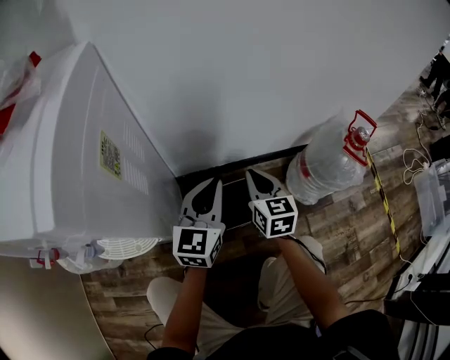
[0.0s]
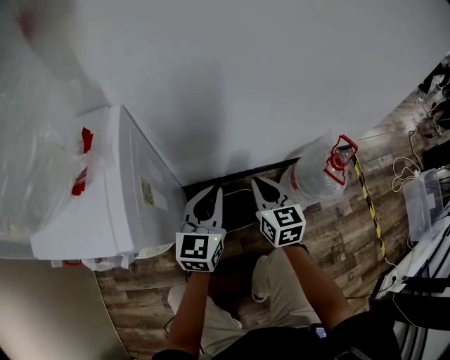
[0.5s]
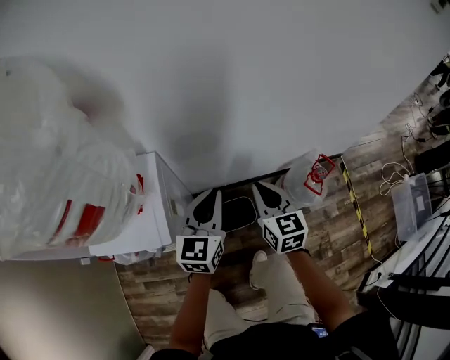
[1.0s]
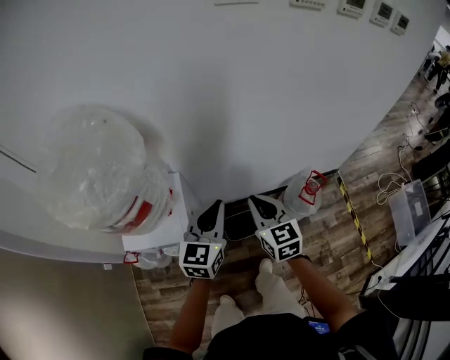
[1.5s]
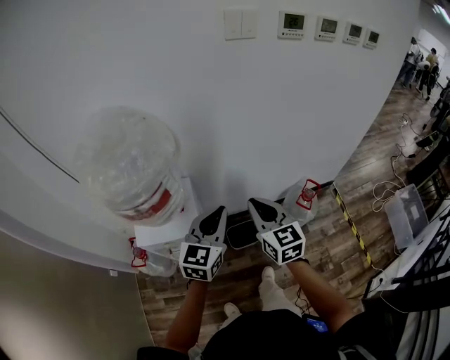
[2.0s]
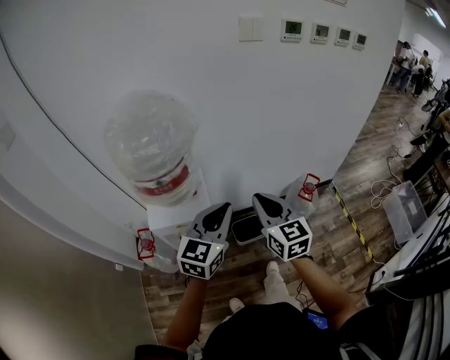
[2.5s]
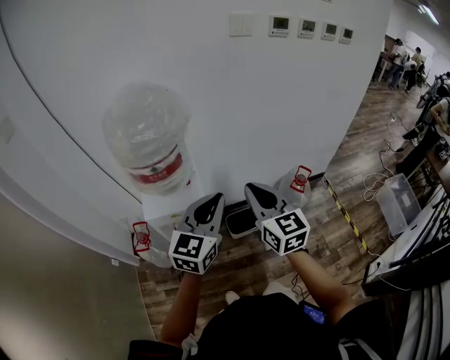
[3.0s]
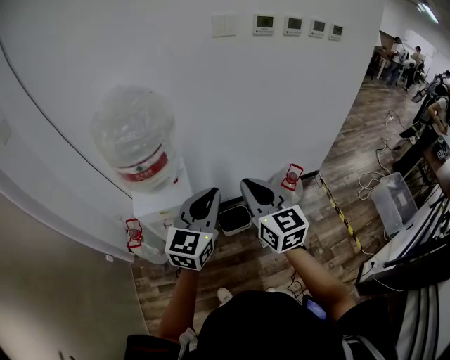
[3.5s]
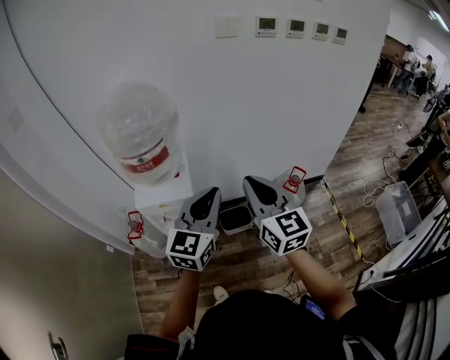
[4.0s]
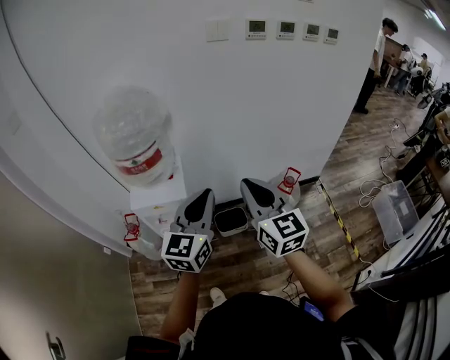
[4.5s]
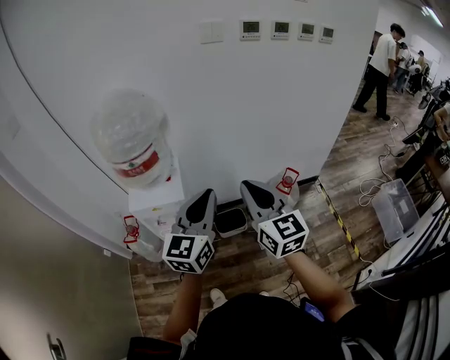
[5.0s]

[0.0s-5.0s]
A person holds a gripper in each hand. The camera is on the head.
0.0s to 2.5s: The two grippers go about 60 cm upward.
2.5s to 5.0s: Both grippers move to the right, backward and upward, about 15 cm.

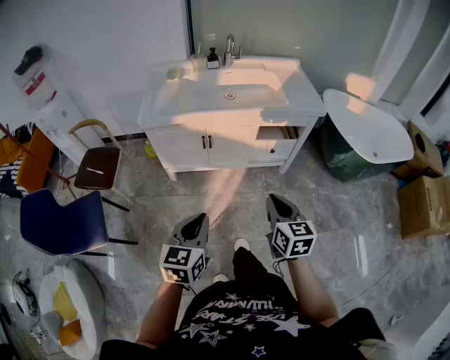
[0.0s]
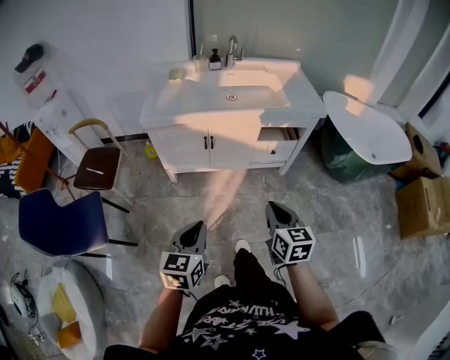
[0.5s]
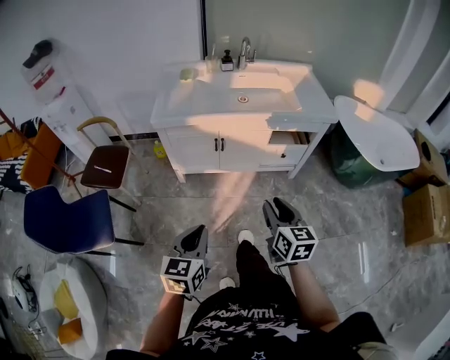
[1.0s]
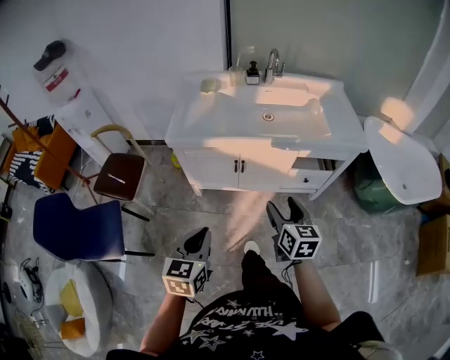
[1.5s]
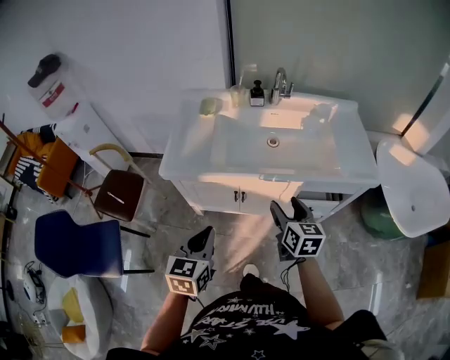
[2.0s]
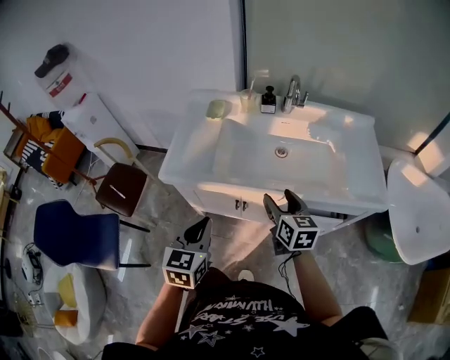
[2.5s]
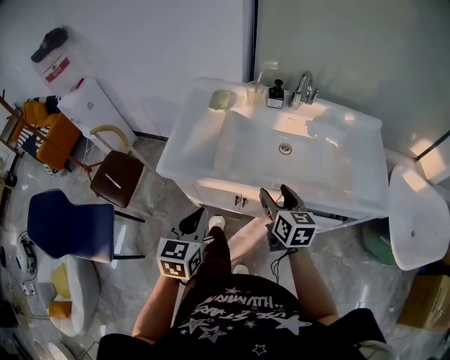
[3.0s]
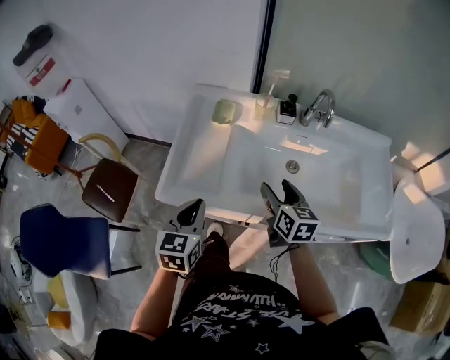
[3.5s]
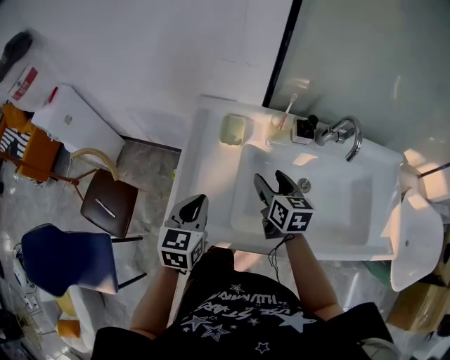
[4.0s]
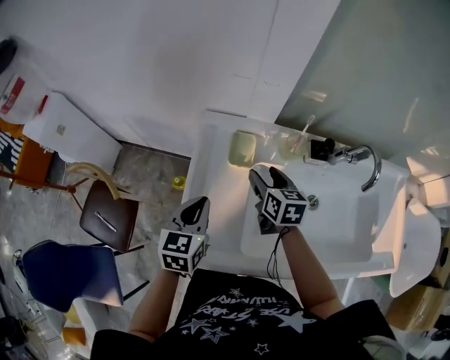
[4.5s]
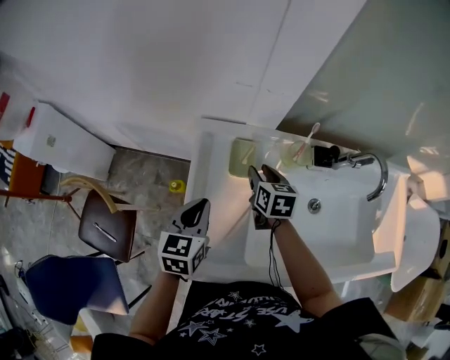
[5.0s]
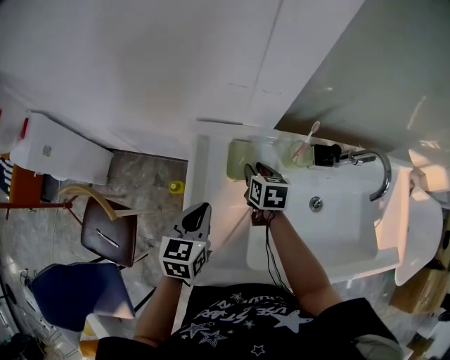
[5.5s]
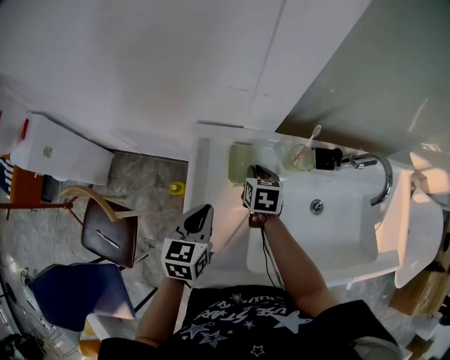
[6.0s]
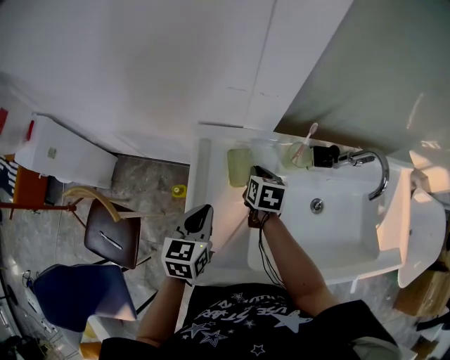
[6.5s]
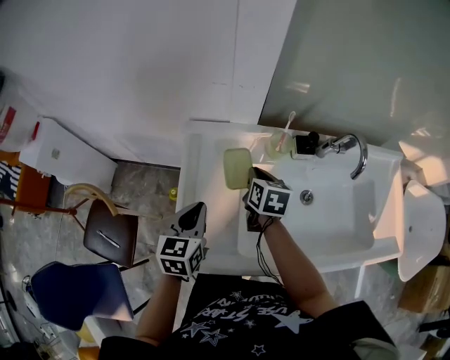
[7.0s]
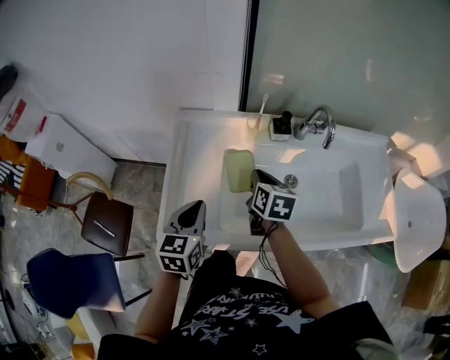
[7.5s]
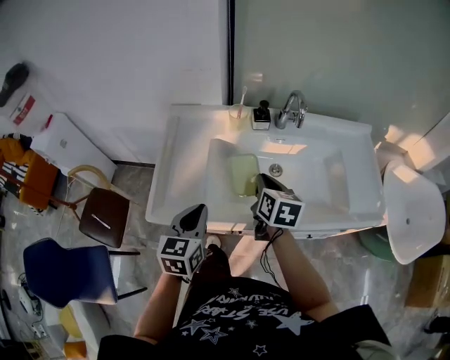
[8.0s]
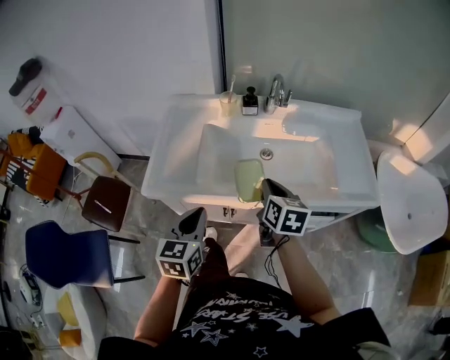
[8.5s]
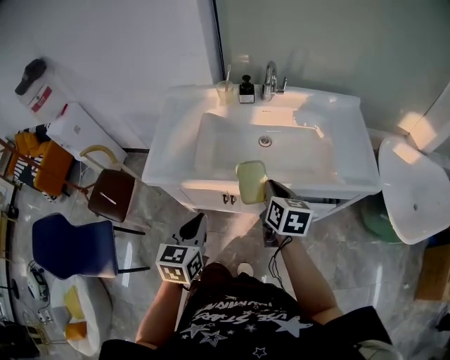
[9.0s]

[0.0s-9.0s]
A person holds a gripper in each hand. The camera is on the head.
0.0s to 2.0s: Both grippers travel together forward, approximately 30 cm. The right gripper opens its fingers.
2.0s to 4.5s: The pair of grippers is taken forward, approximately 50 cm.
4.5s to 7.0s: The right gripper goes downward and returns, approximately 10 cm each way, and closes its fingers.
7.0s to 9.0s: Both grippers are carried backward and to the right, about 40 cm.

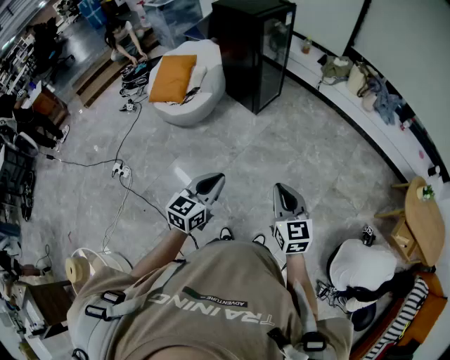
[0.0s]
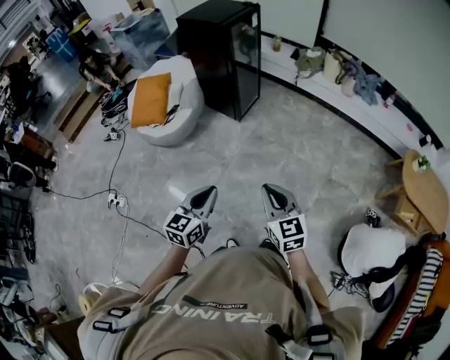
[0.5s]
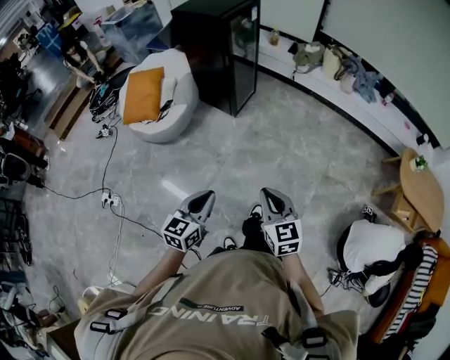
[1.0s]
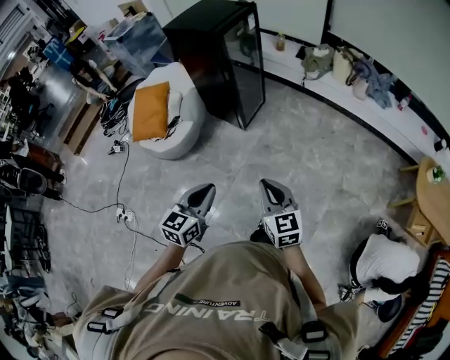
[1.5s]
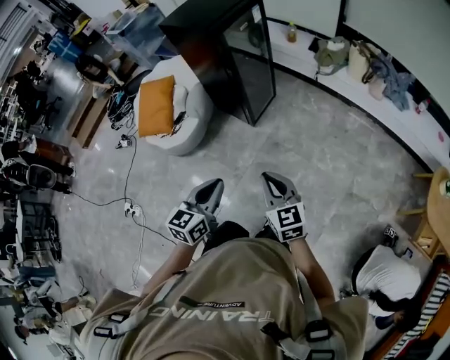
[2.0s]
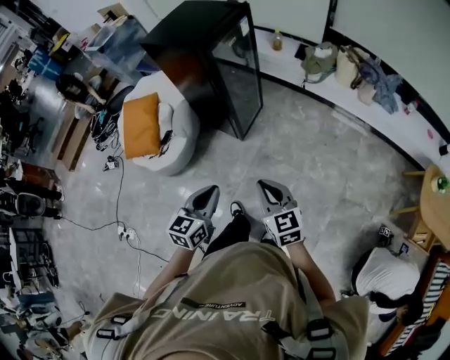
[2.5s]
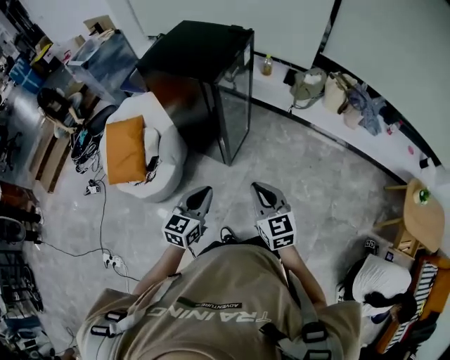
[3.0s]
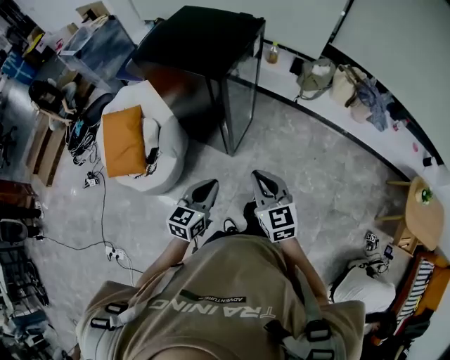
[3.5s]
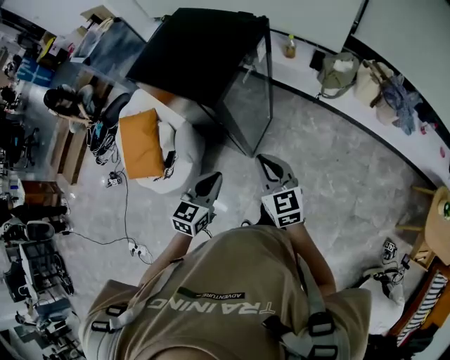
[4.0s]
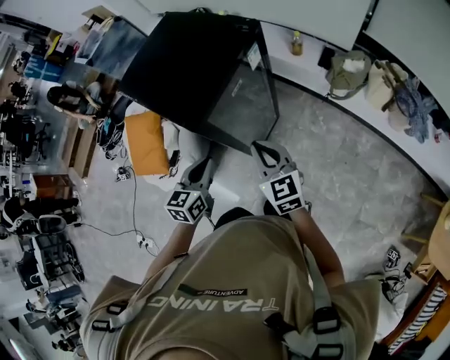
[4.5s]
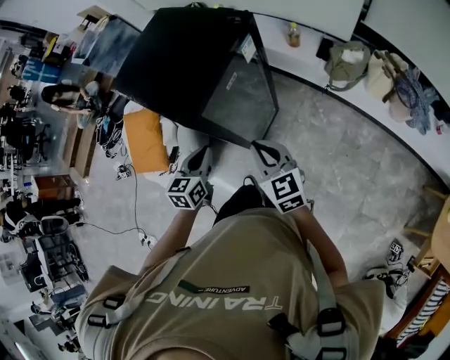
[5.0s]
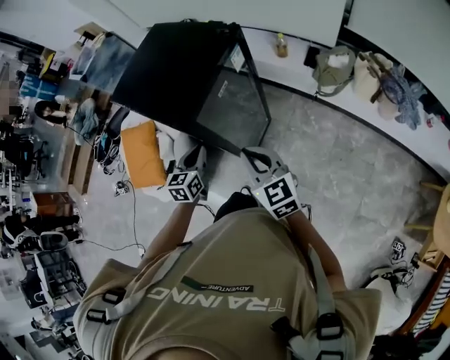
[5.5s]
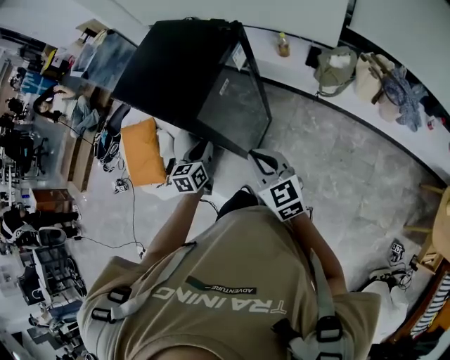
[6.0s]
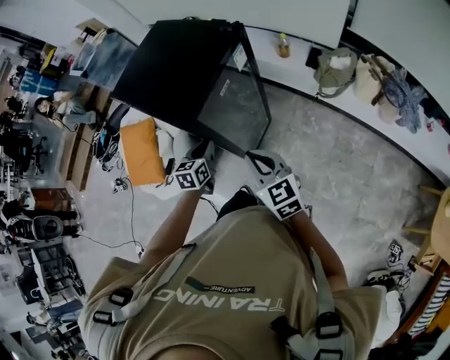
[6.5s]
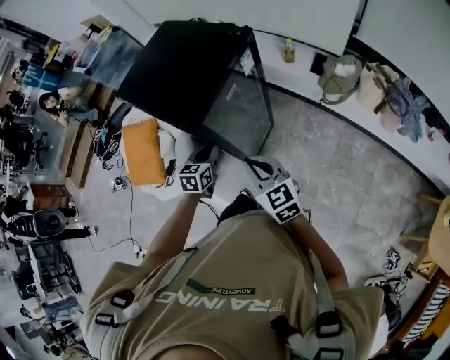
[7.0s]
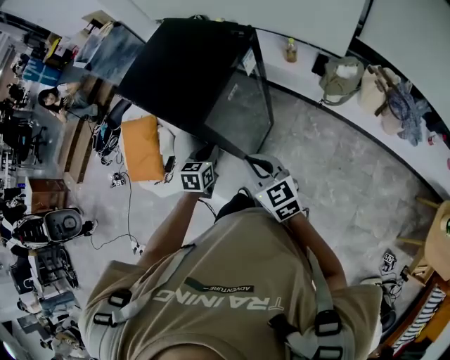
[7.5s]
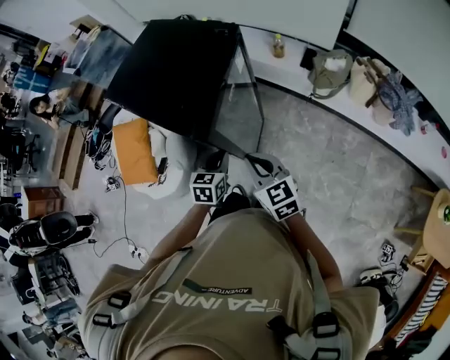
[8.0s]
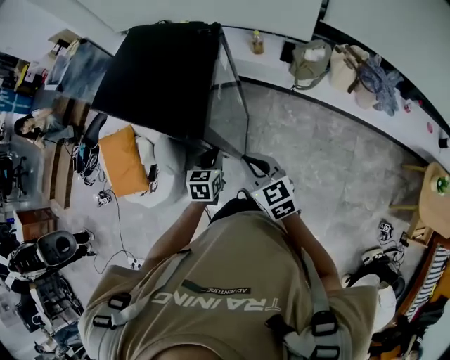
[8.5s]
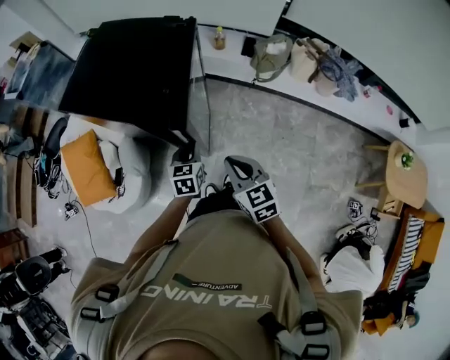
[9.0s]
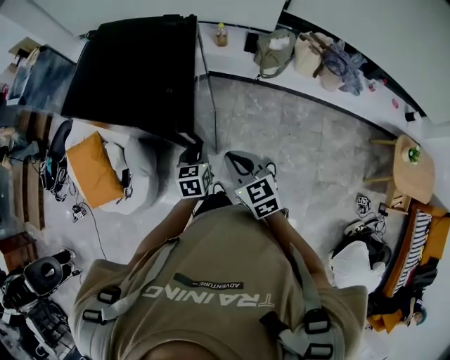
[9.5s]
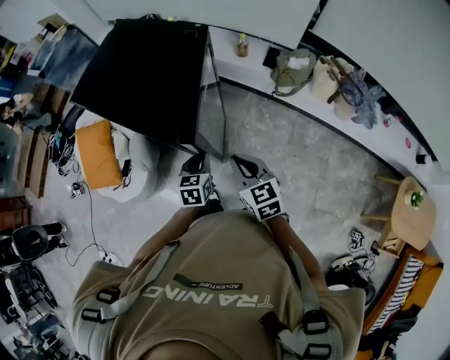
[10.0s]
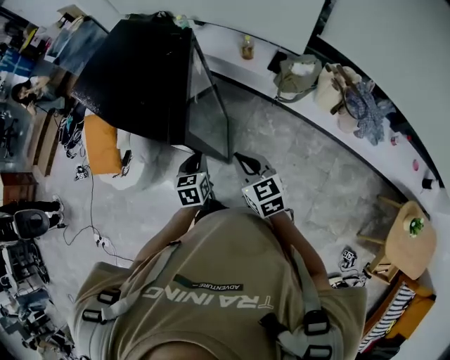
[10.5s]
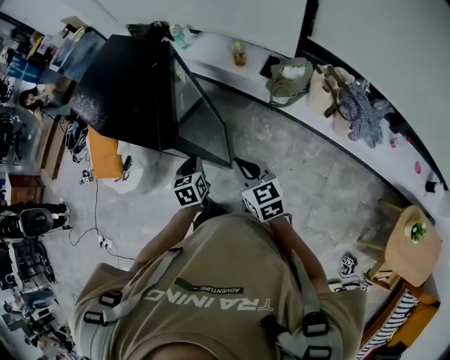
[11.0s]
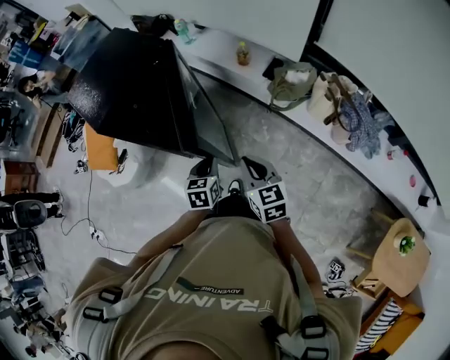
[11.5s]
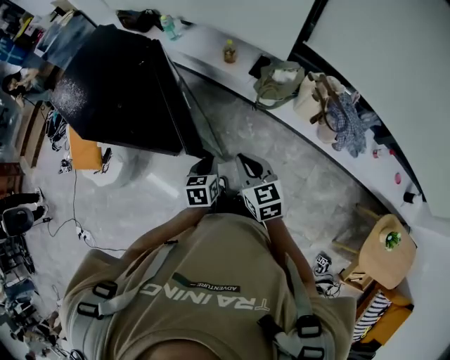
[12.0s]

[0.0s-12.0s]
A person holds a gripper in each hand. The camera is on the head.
0.0s to 2.0s: The two grippers go some 30 cm forward.
2.0s to 4.0s: The two grippers go about 40 cm forward.
4.0s to 6.0s: The left gripper is displaced forward and downward by approximately 20 cm, and changes its angle by approximately 20 degrees.
6.0s to 8.0s: The left gripper shifts about 10 cm to the right.
8.0s to 10.0s: The right gripper shifts about 5 cm to the right.
10.0s to 12.0s: The two grippers go approximately 20 cm to the right.

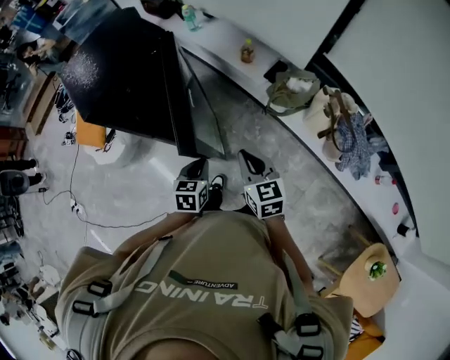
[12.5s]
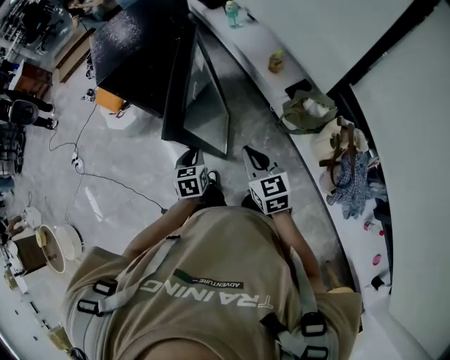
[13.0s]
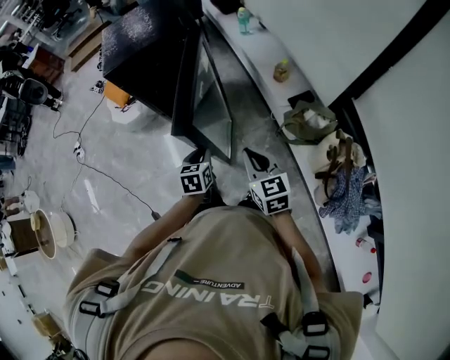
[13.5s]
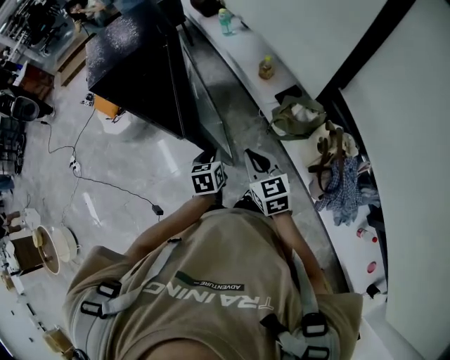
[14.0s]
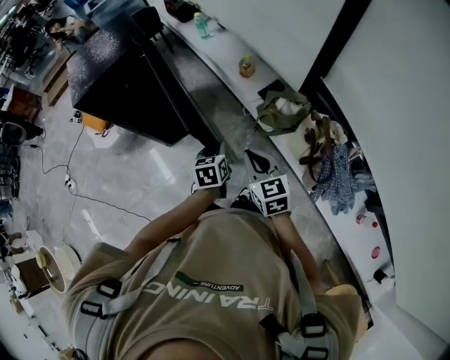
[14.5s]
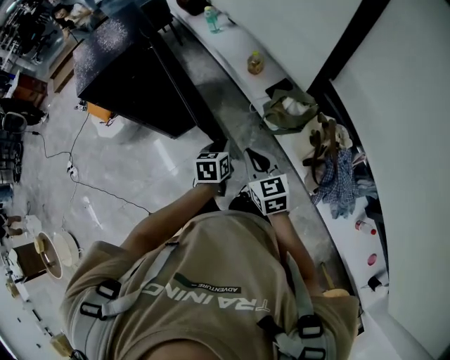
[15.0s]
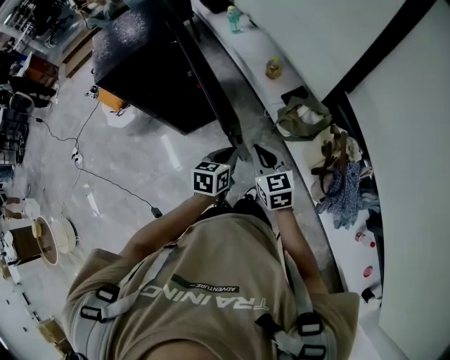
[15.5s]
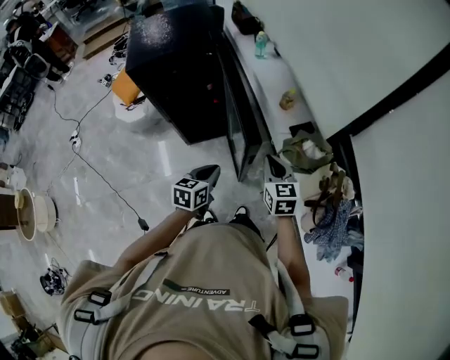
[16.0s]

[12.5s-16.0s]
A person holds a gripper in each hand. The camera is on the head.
12.5s to 14.5s: The right gripper moves roughly 15 cm; the left gripper ends up approximately 20 cm from where it was, and rotates some 20 degrees.
14.5s to 16.0s: The left gripper shifts approximately 10 cm to the left and backward; the right gripper shifts some 5 cm forward.
